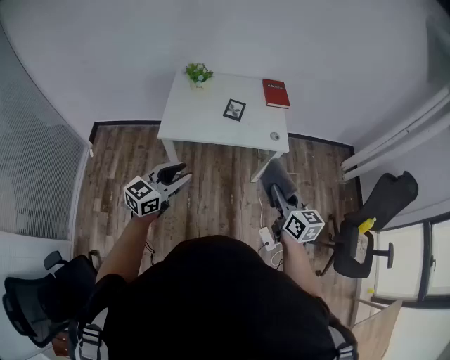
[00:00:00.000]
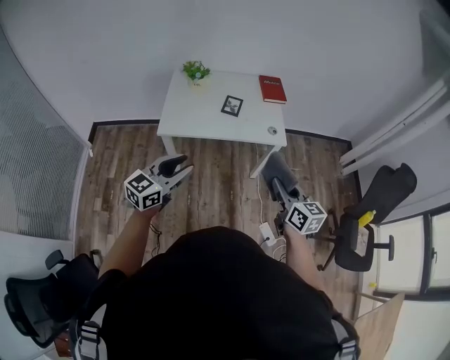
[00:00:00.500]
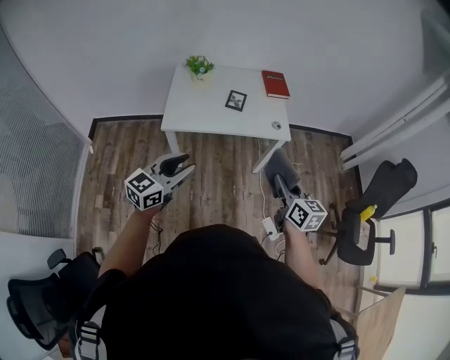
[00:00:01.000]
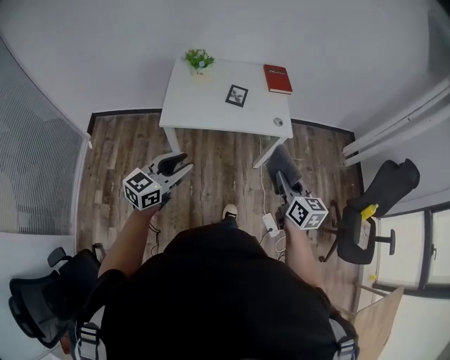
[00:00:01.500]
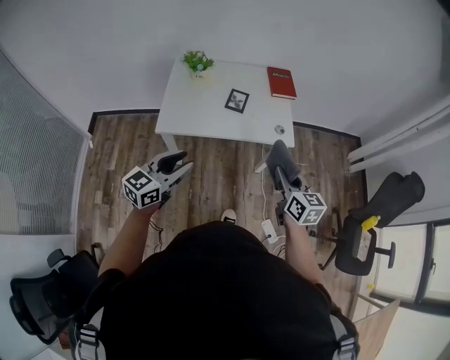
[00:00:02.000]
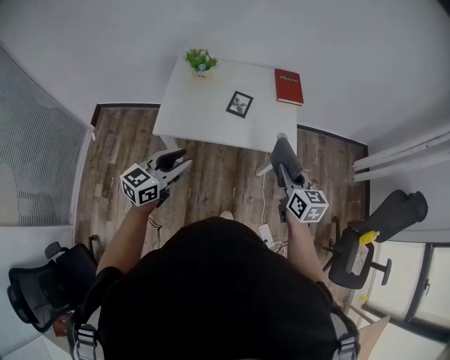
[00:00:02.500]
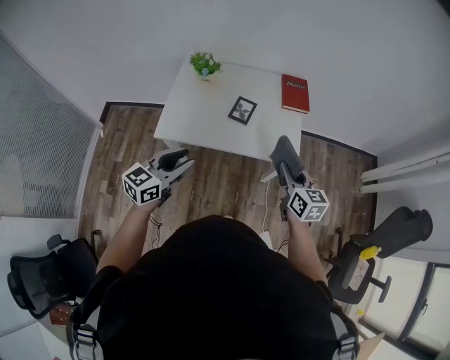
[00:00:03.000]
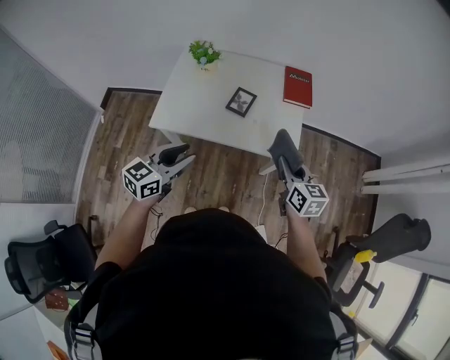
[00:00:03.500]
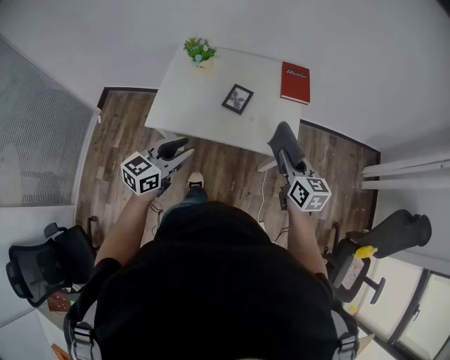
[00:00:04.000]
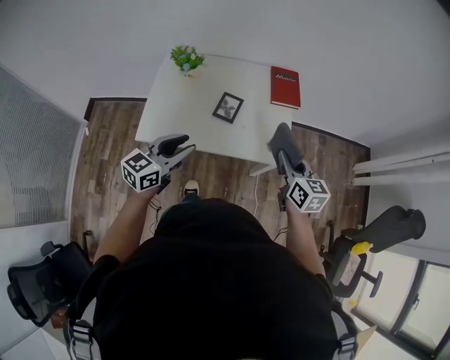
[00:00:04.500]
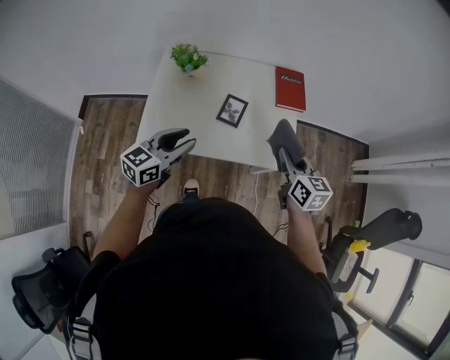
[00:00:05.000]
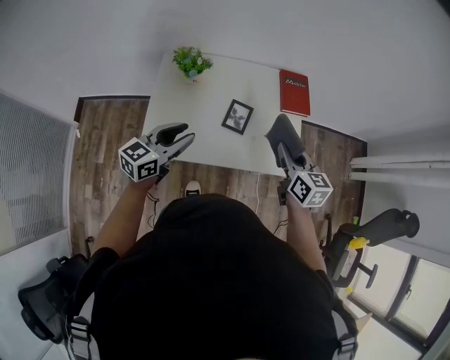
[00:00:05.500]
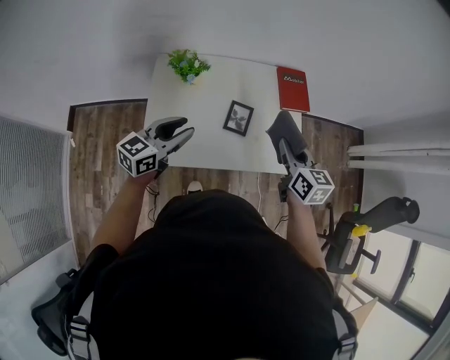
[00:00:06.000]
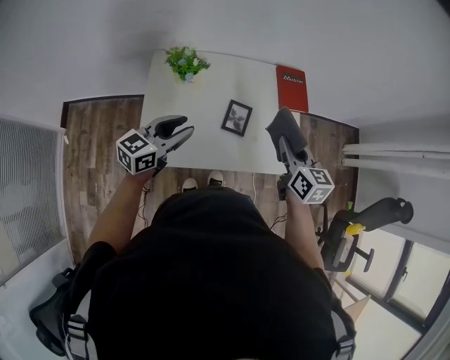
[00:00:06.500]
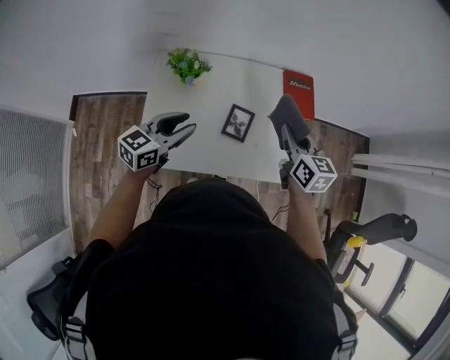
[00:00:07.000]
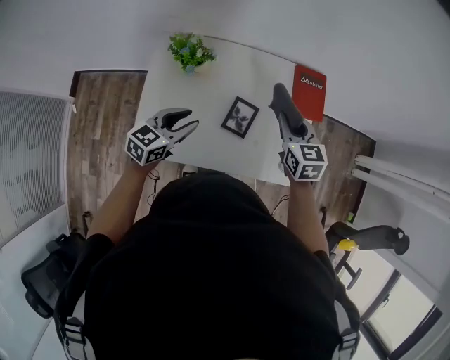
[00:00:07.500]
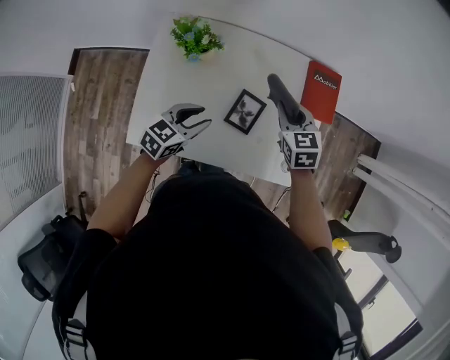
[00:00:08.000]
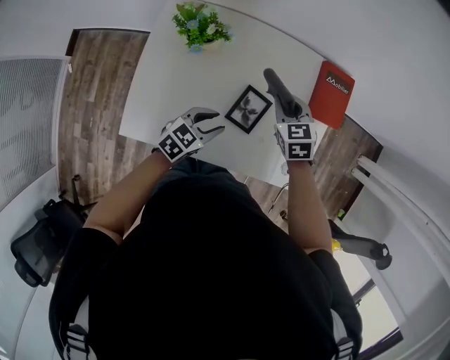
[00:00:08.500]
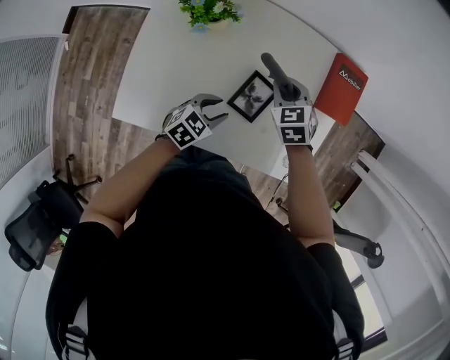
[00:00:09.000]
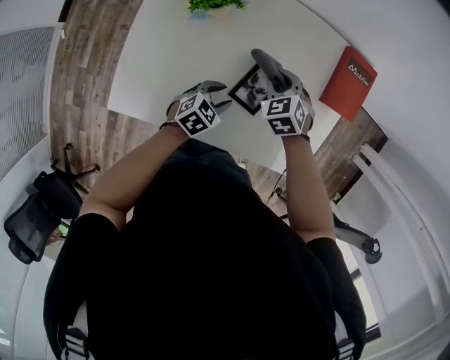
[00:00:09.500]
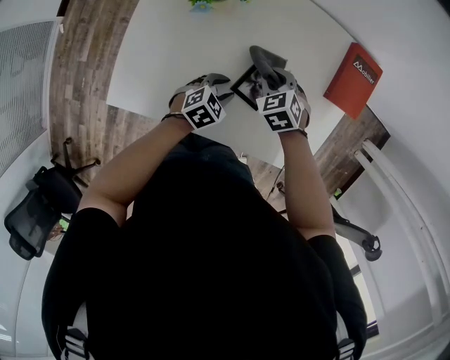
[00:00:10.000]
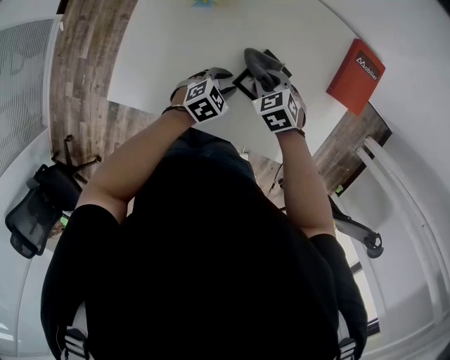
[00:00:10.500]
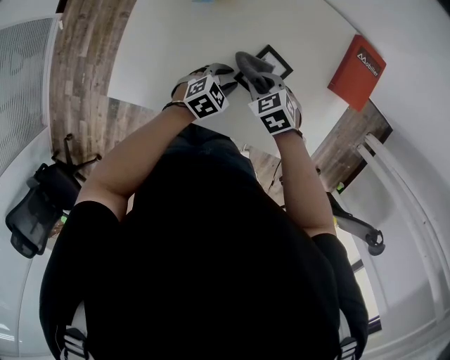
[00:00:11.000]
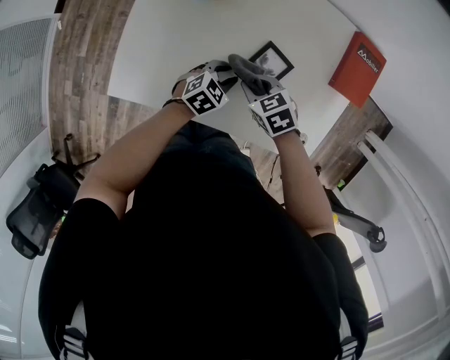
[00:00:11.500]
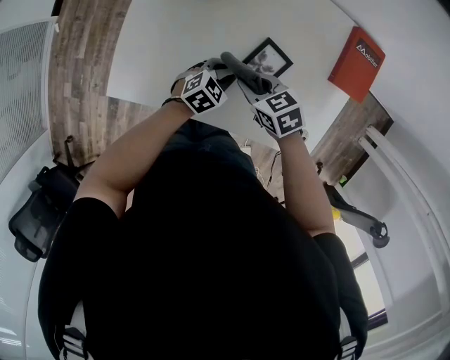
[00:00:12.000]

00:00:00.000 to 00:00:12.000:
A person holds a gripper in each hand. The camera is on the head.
00:00:00.000 to 00:00:02.000: The grippers both shift forward by approximately 10 cm.
00:00:02.000 to 00:00:04.000: The right gripper is displaced forward by about 20 cm. Meanwhile the left gripper travels forward and to the right by roughly 15 cm.
00:00:04.000 to 00:00:06.000: The left gripper travels forward and to the left by about 25 cm, while the right gripper heads to the left and forward, covering roughly 20 cm.
00:00:06.000 to 00:00:08.000: The left gripper heads downward and forward, covering some 20 cm. Meanwhile the right gripper shifts about 20 cm forward and downward, and turns by approximately 30 degrees.
00:00:08.000 to 00:00:10.000: Both grippers travel together downward, approximately 20 cm. The left gripper swivels approximately 20 degrees. The right gripper rotates roughly 30 degrees.
00:00:10.000 to 00:00:12.000: The right gripper ends up some 10 cm from where it was, and turns by some 30 degrees.

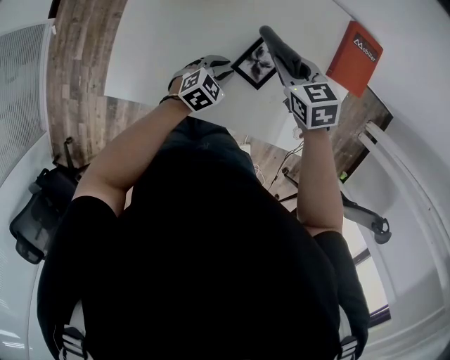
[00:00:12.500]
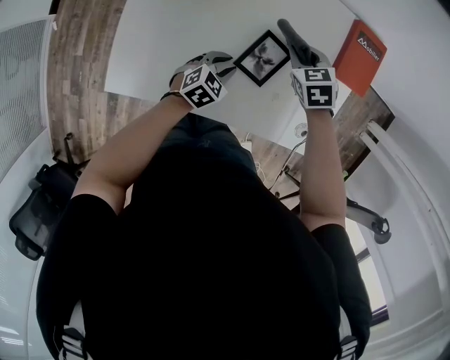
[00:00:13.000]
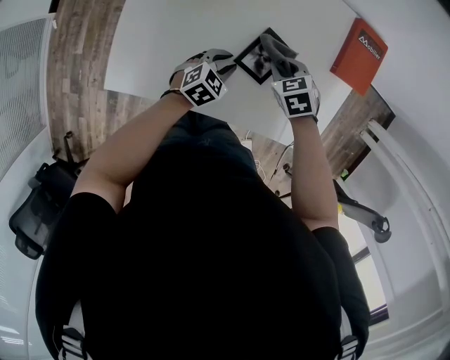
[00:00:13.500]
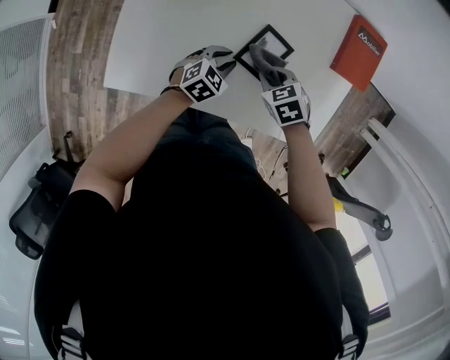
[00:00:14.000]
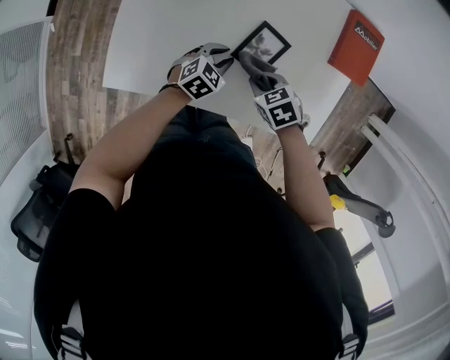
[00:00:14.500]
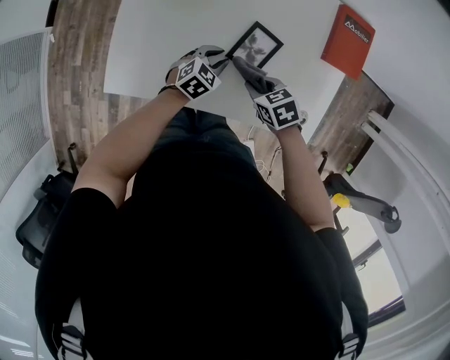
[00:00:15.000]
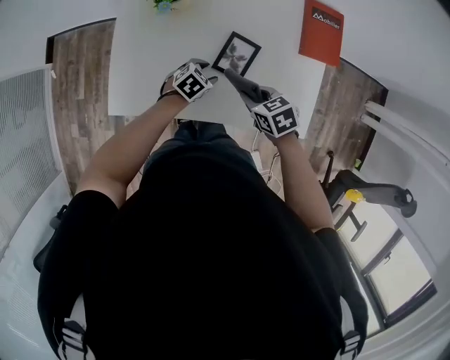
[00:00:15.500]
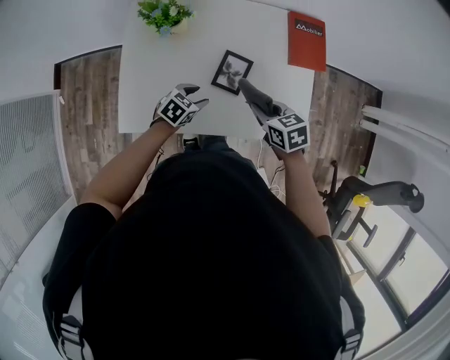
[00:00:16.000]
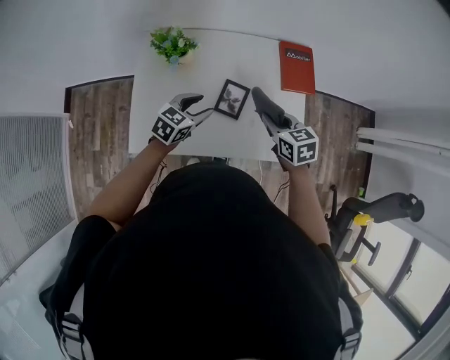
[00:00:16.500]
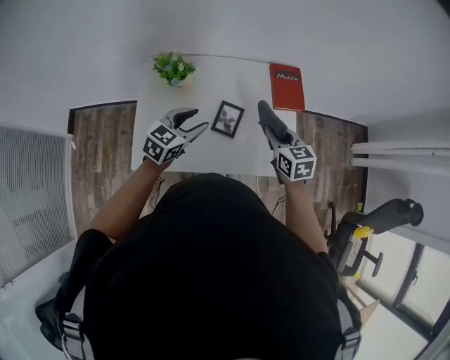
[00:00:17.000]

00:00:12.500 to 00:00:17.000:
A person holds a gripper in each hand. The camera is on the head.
00:00:12.500 to 00:00:14.500: The right gripper moves backward and downward, some 15 cm.
00:00:14.500 to 00:00:17.000: The grippers both shift upward by approximately 25 cm. The left gripper swivels some 20 degrees, and opens; the right gripper points its fingers about 30 degrees further upward.

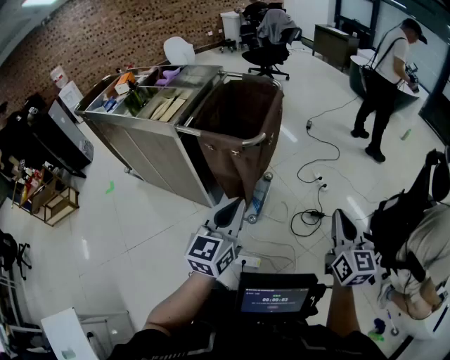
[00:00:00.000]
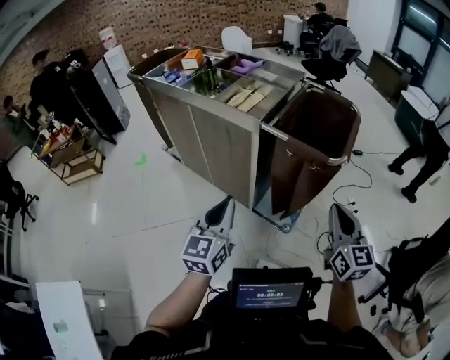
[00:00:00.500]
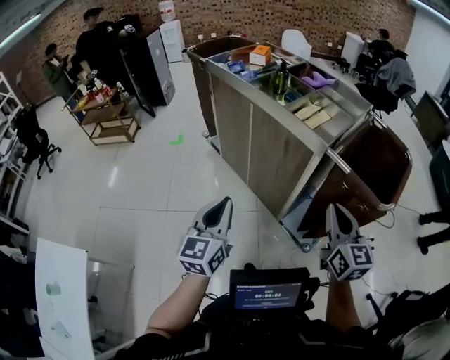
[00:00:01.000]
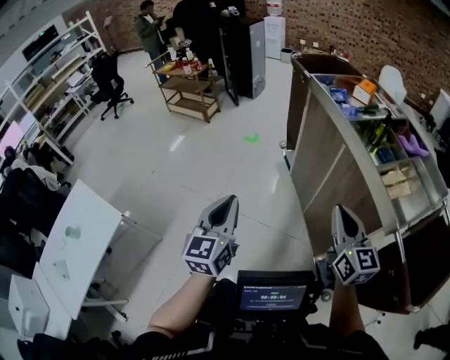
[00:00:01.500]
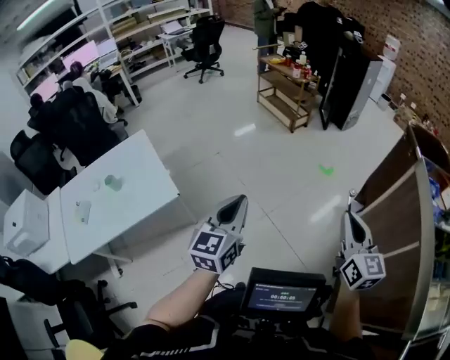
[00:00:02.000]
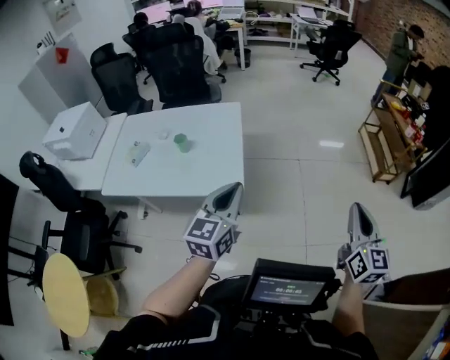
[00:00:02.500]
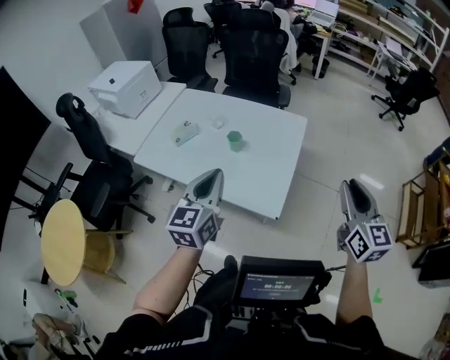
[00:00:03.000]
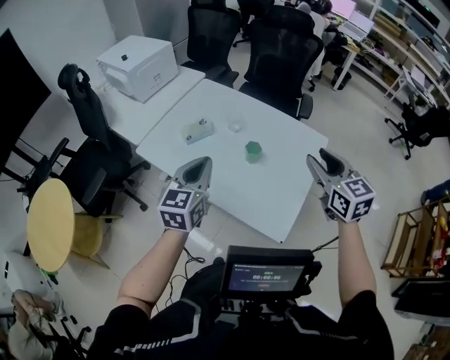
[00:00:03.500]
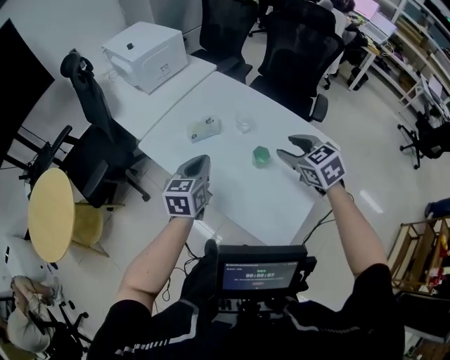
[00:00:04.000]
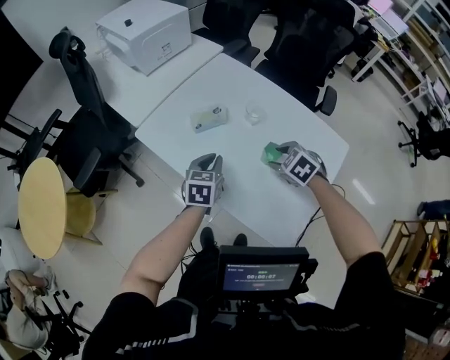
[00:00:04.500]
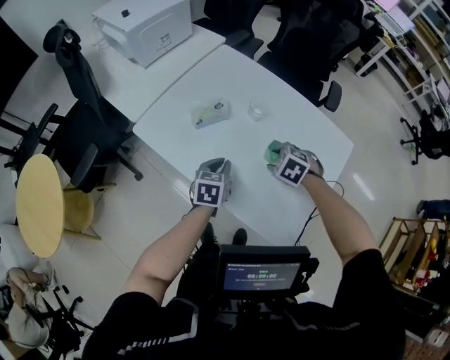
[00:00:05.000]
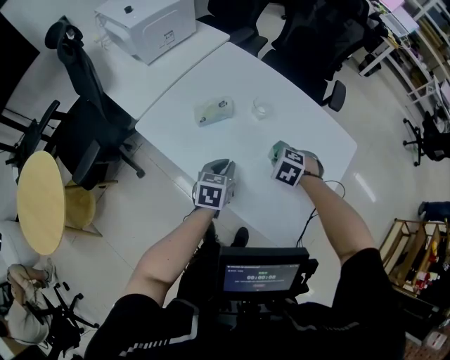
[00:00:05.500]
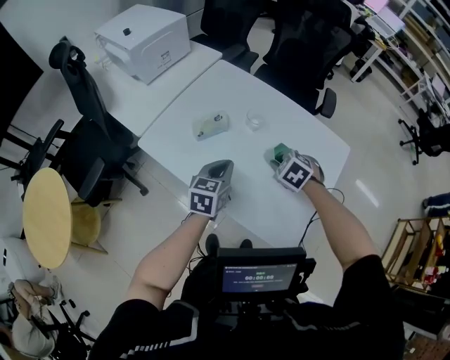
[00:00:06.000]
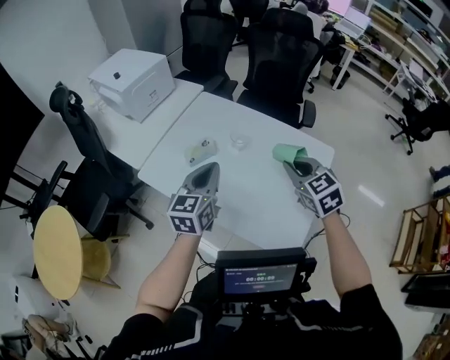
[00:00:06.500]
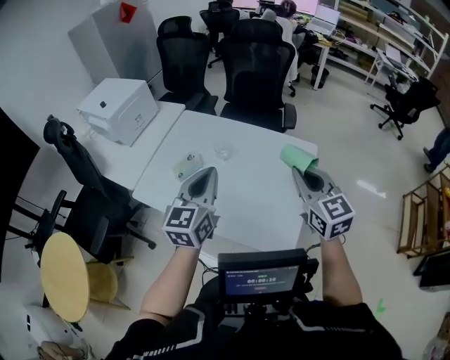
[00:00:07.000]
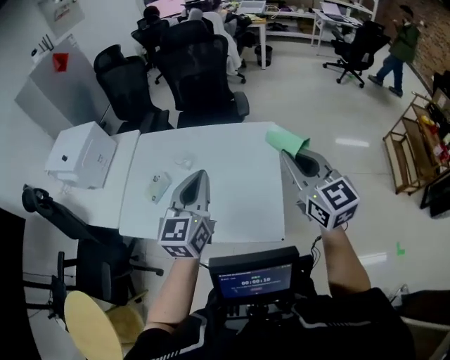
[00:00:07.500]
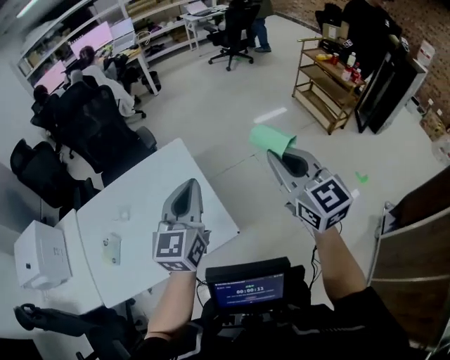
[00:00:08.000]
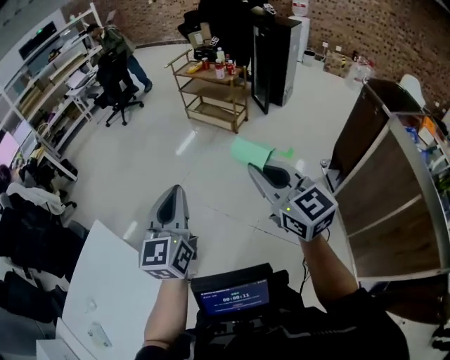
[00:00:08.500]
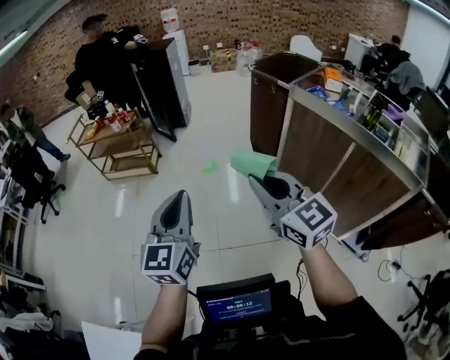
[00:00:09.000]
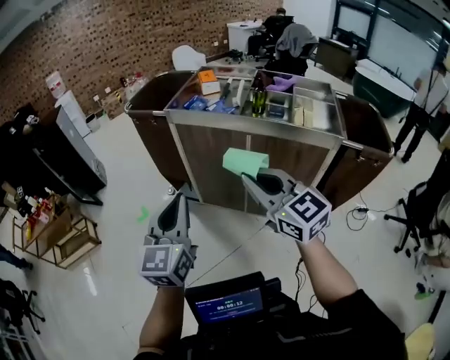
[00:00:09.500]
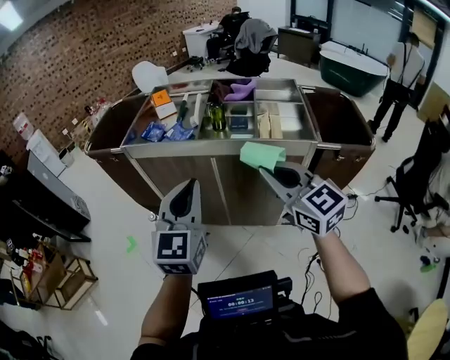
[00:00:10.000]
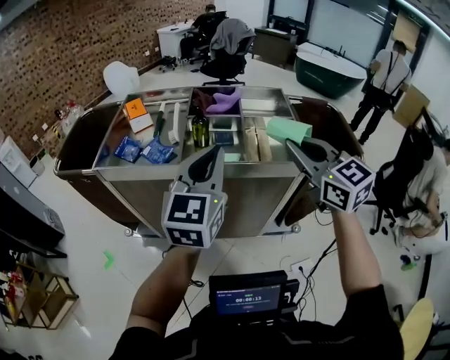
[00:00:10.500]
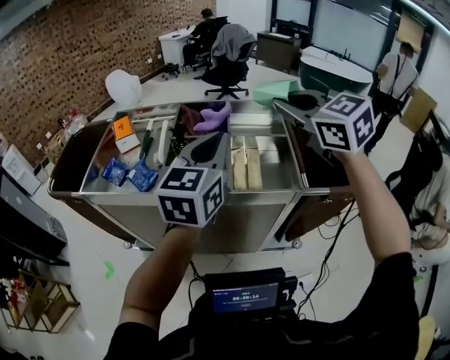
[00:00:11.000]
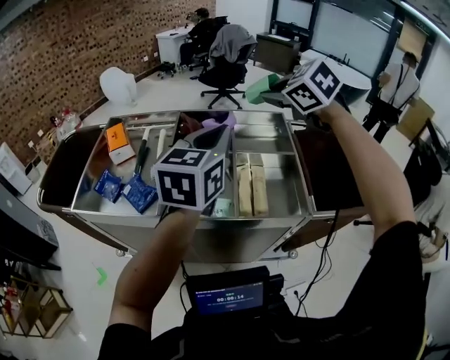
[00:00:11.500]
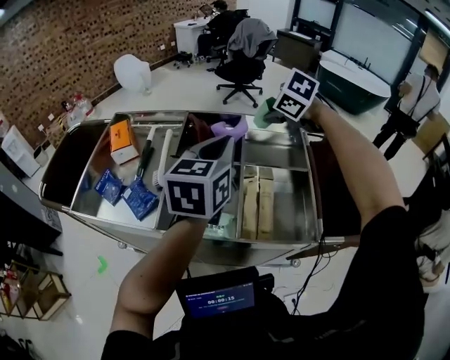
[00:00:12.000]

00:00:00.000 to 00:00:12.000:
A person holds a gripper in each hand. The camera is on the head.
00:00:00.000 to 00:00:02.000: The pair of grippers is taken roughly 1 m. The left gripper rotates approximately 90 degrees, while the right gripper changes its angle by some 80 degrees.
00:00:02.000 to 00:00:04.000: The pair of grippers is taken about 1 m. The left gripper changes its angle by roughly 80 degrees, while the right gripper tips its fingers downward by some 40 degrees, and opens its fingers.
00:00:04.000 to 00:00:06.000: The right gripper goes approximately 15 cm downward, rotates roughly 30 degrees, and closes. The left gripper travels downward by some 10 cm.
00:00:06.000 to 00:00:08.000: Both grippers are carried about 60 cm. The right gripper angles its fingers upward, by roughly 70 degrees. The left gripper swivels approximately 60 degrees.
00:00:08.000 to 00:00:10.000: The pair of grippers is taken approximately 1 m. The right gripper turns by roughly 100 degrees. Meanwhile the left gripper turns by some 110 degrees.
00:00:10.000 to 00:00:12.000: Both grippers are carried forward, approximately 60 cm. The left gripper rotates some 20 degrees. The right gripper tips its fingers downward by approximately 60 degrees.
